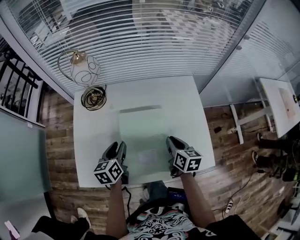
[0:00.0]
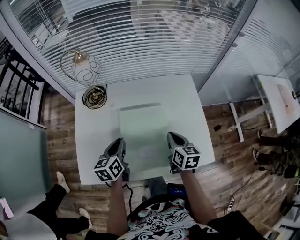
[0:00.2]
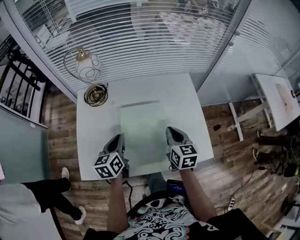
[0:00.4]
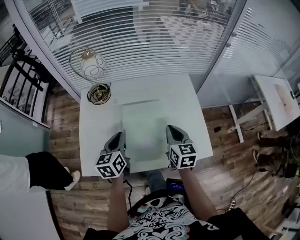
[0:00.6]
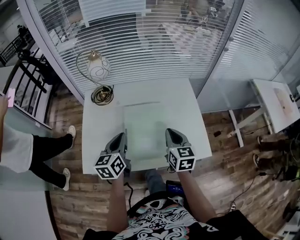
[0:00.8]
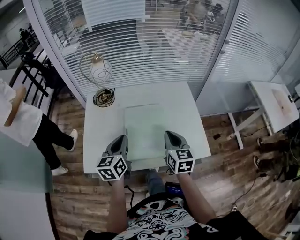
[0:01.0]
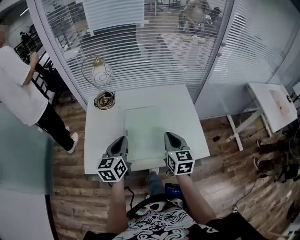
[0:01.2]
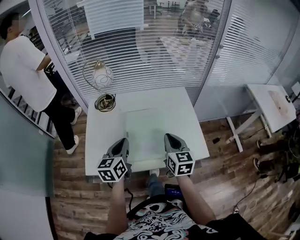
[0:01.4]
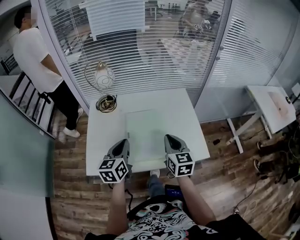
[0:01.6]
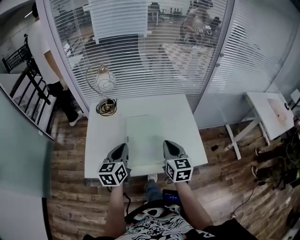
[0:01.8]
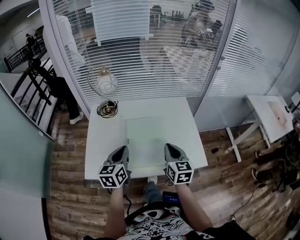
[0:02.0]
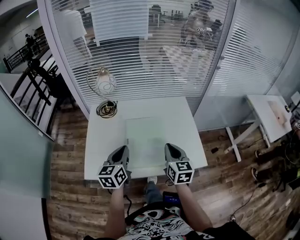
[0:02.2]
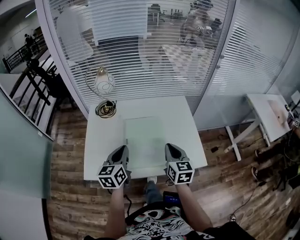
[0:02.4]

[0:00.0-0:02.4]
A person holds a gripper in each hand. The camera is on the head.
0:00.0 to 0:01.2: The two grippers go some 15 cm upward and backward. The left gripper closes up. Meanwhile the right gripper changes its angle by some 30 degrees.
0:01.2 to 0:02.4: The grippers stay close to where they were, moving slightly.

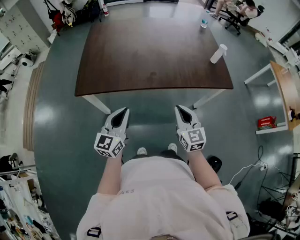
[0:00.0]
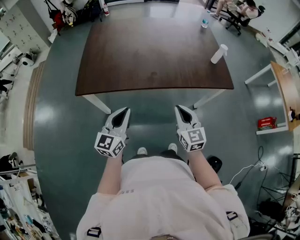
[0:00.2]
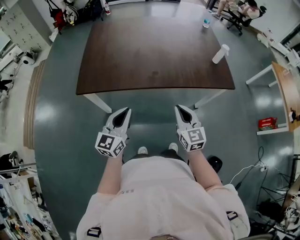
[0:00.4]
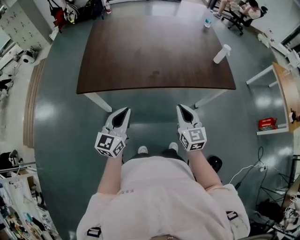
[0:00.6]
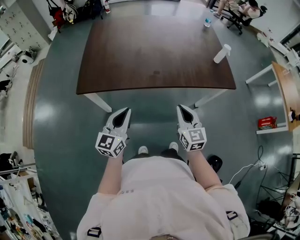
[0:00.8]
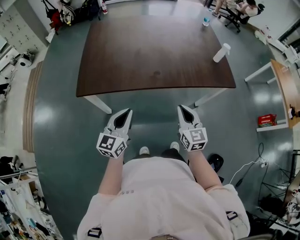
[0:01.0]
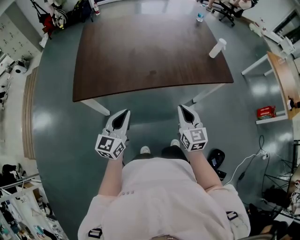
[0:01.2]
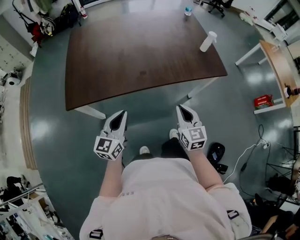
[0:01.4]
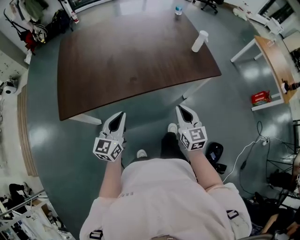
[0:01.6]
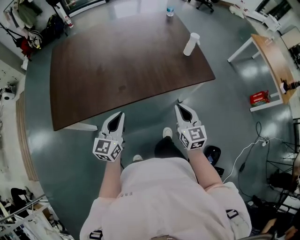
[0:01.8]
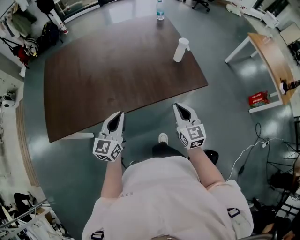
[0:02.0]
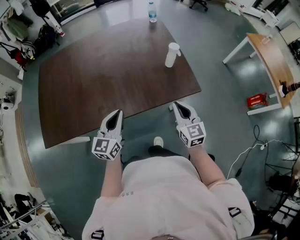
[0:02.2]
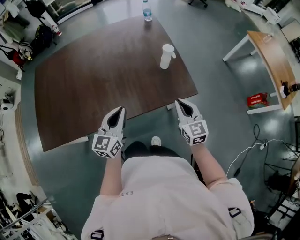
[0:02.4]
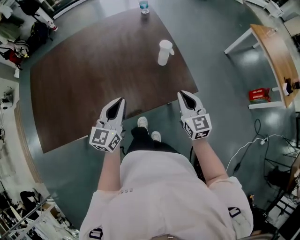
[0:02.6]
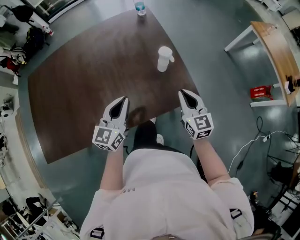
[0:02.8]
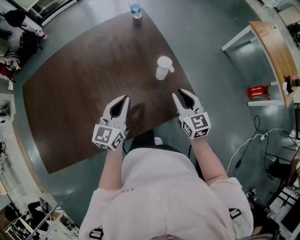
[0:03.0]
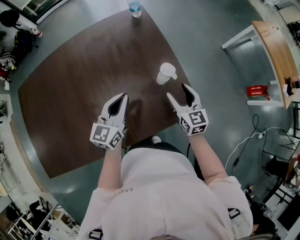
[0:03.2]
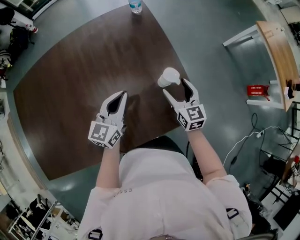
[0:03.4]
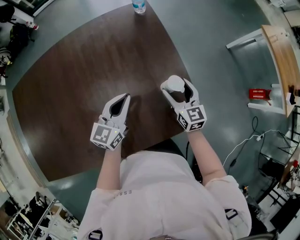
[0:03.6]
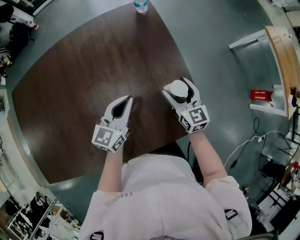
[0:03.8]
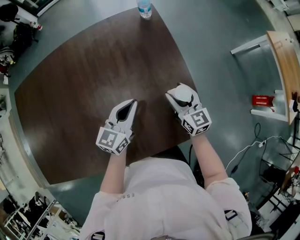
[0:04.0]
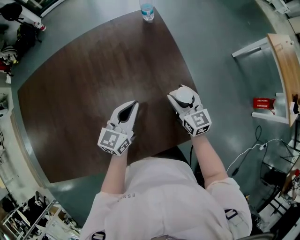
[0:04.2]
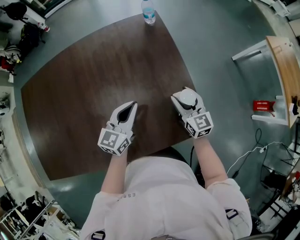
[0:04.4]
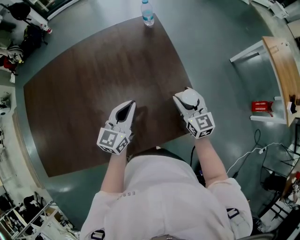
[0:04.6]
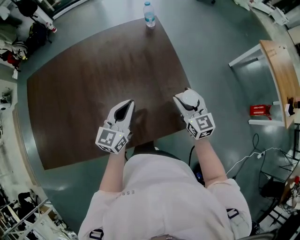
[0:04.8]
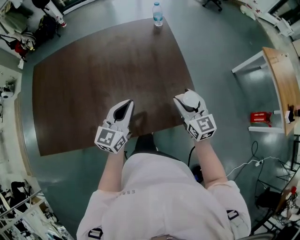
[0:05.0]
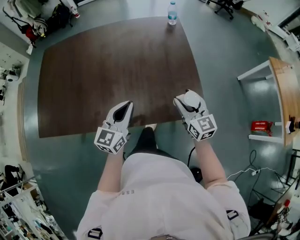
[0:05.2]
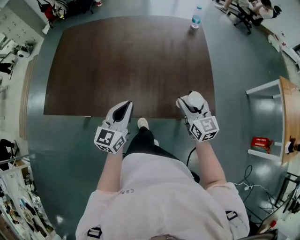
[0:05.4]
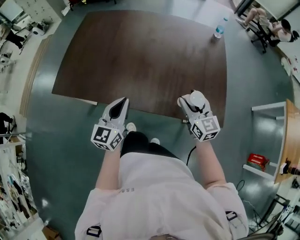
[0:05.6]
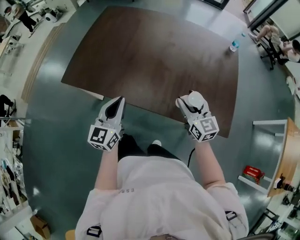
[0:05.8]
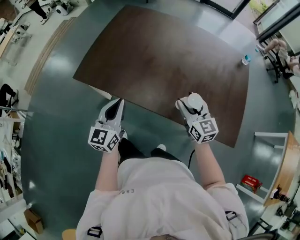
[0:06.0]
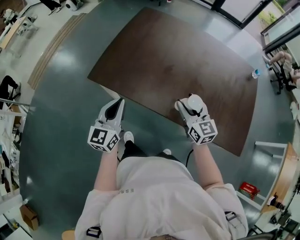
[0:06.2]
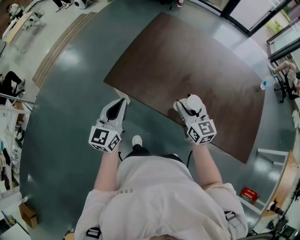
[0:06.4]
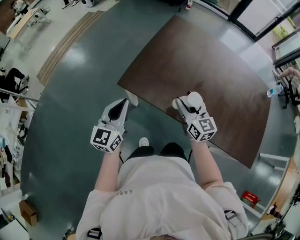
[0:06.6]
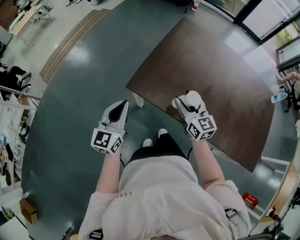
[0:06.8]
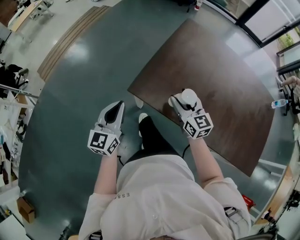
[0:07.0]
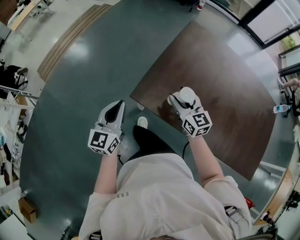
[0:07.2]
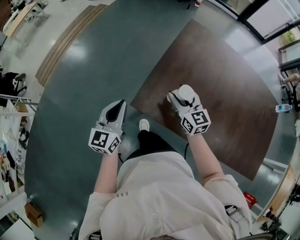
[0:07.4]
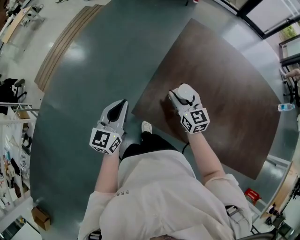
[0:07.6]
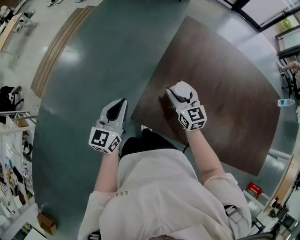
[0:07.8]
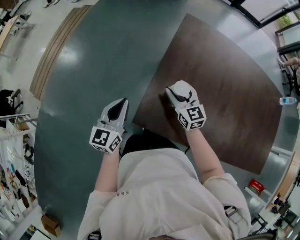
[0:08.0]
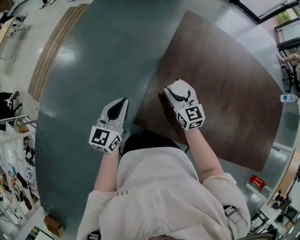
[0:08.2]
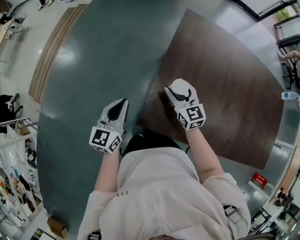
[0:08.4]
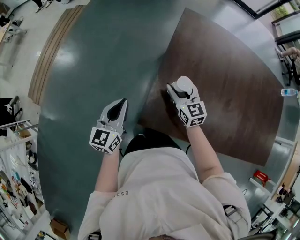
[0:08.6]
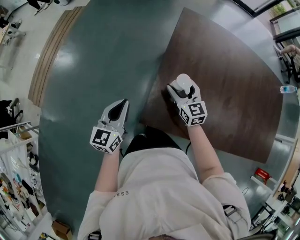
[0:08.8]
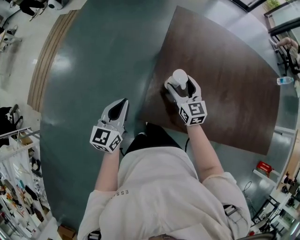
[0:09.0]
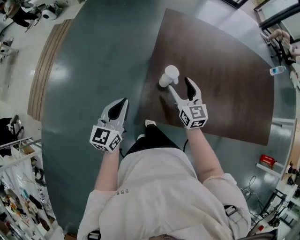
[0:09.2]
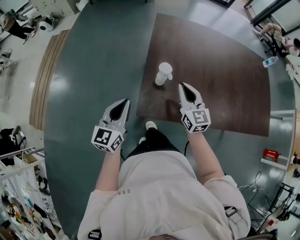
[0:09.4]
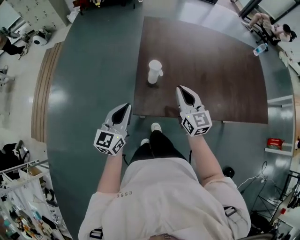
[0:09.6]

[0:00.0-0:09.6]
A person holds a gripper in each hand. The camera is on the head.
0:00.0 to 0:01.6: The left gripper travels forward and to the right by approximately 15 cm. Meanwhile the right gripper heads to the right and forward, covering roughly 10 cm.
0:01.6 to 0:03.2: Both grippers are carried forward and to the right, approximately 70 cm. The right gripper opens.
0:03.2 to 0:04.8: The left gripper reaches approximately 10 cm forward, then returns; the right gripper goes forward and returns, some 15 cm each way.
0:04.8 to 0:06.4: Both grippers are carried about 80 cm. The left gripper changes its angle by roughly 50 degrees; the right gripper rotates about 40 degrees.
0:06.4 to 0:08.0: Both grippers are carried forward and to the left, roughly 40 cm.
0:08.0 to 0:09.6: The left gripper goes some 15 cm backward and upward, and swivels approximately 20 degrees. Meanwhile the right gripper travels backward and upward by roughly 25 cm, swivels roughly 30 degrees, and closes up.

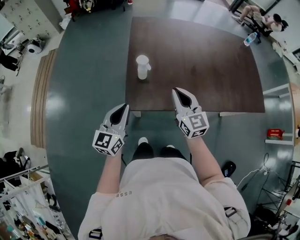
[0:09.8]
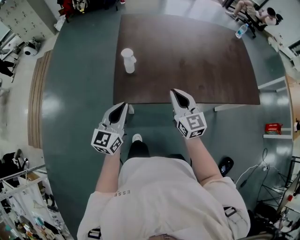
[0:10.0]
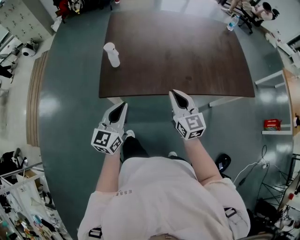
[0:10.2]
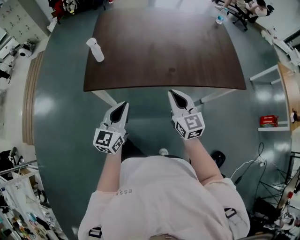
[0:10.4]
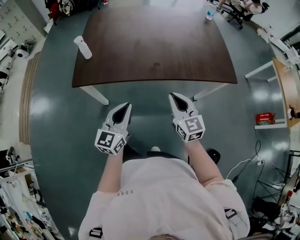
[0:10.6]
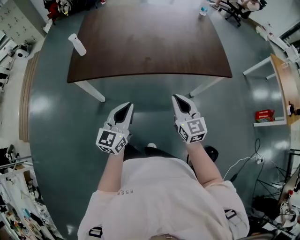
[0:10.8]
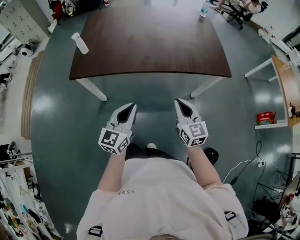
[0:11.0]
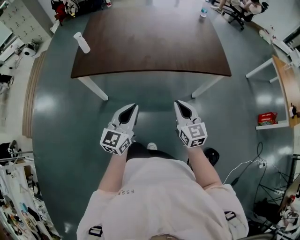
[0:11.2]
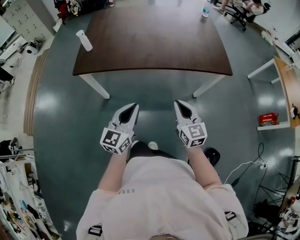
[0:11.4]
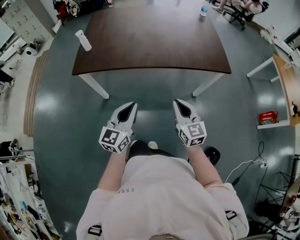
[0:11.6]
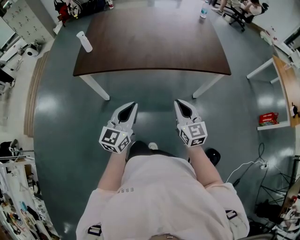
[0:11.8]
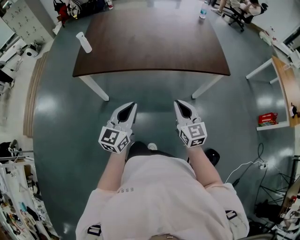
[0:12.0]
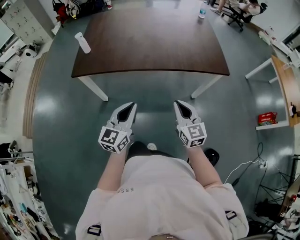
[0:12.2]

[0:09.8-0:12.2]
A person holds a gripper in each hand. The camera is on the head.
0:09.8 to 0:11.0: Both grippers are carried to the right and backward, approximately 60 cm.
0:11.0 to 0:12.2: The right gripper moves roughly 5 cm.

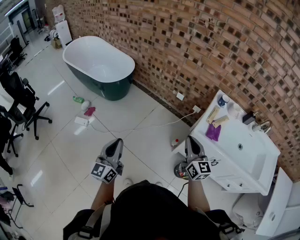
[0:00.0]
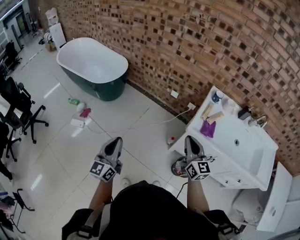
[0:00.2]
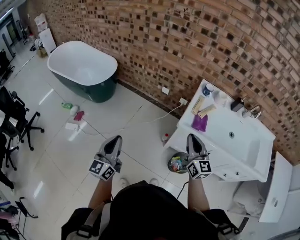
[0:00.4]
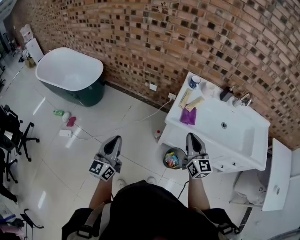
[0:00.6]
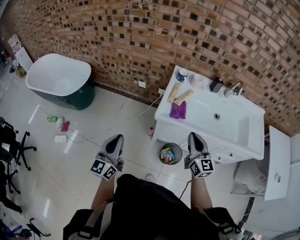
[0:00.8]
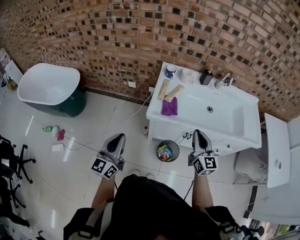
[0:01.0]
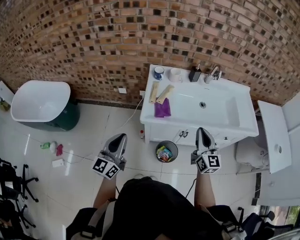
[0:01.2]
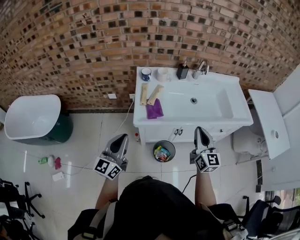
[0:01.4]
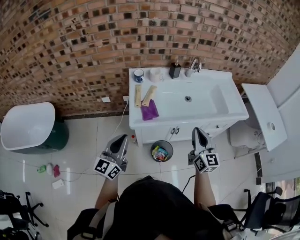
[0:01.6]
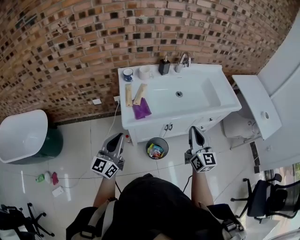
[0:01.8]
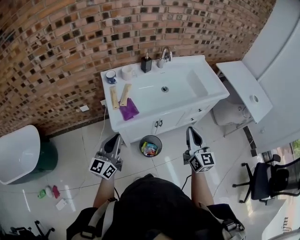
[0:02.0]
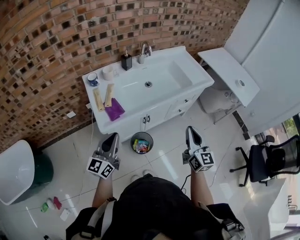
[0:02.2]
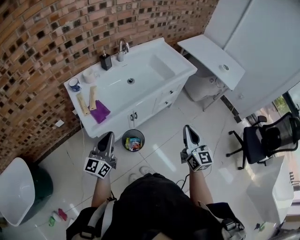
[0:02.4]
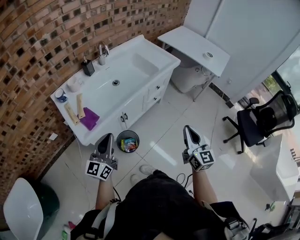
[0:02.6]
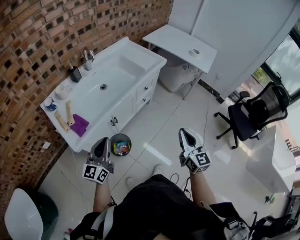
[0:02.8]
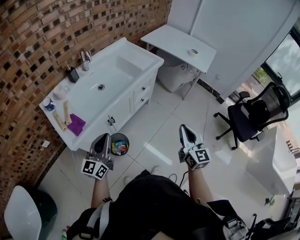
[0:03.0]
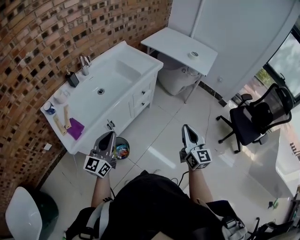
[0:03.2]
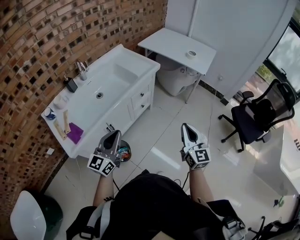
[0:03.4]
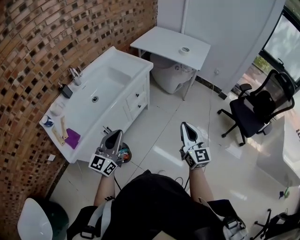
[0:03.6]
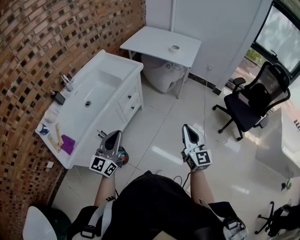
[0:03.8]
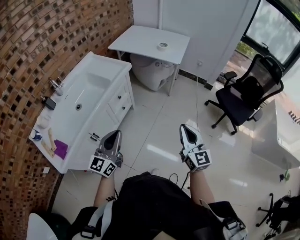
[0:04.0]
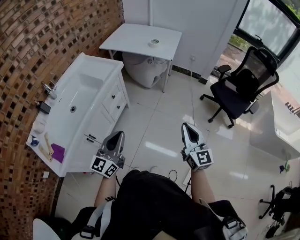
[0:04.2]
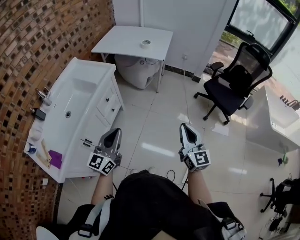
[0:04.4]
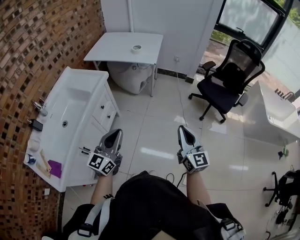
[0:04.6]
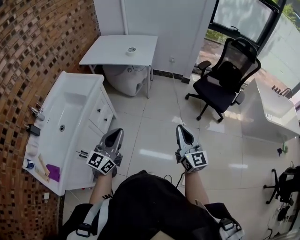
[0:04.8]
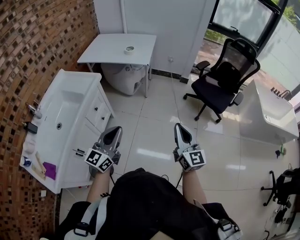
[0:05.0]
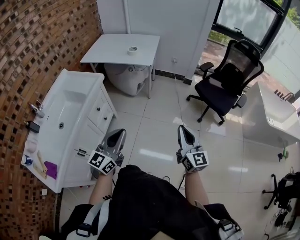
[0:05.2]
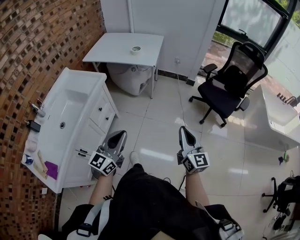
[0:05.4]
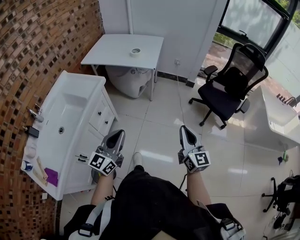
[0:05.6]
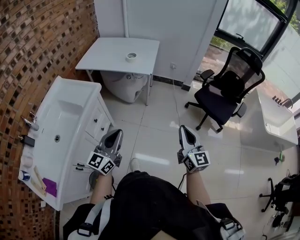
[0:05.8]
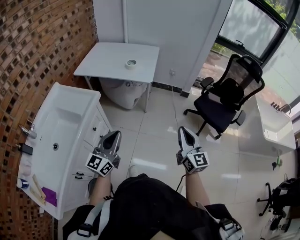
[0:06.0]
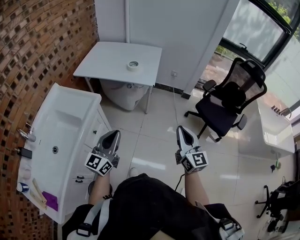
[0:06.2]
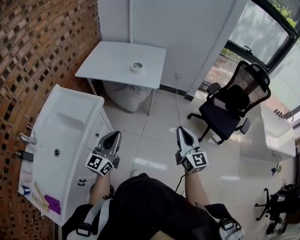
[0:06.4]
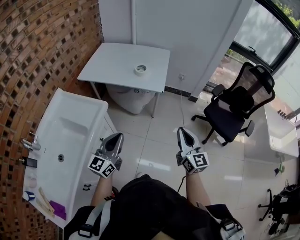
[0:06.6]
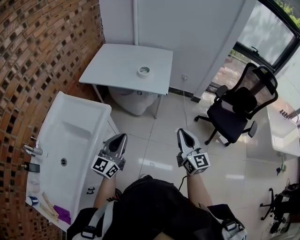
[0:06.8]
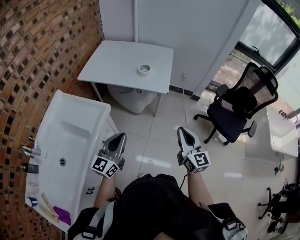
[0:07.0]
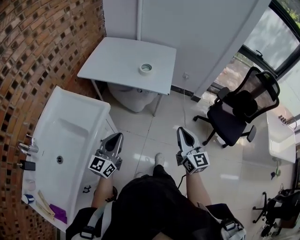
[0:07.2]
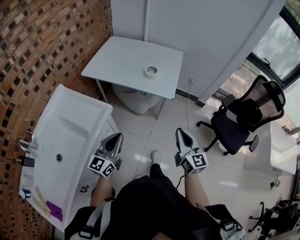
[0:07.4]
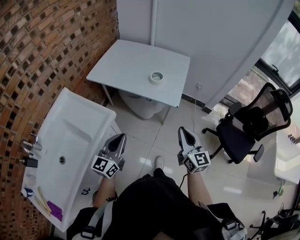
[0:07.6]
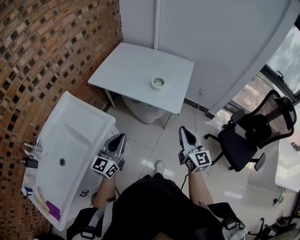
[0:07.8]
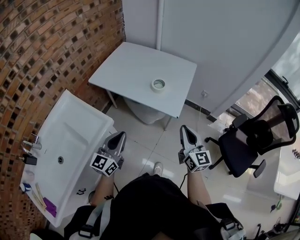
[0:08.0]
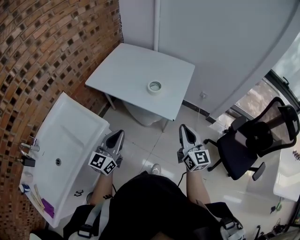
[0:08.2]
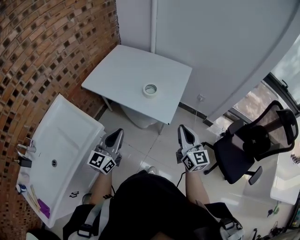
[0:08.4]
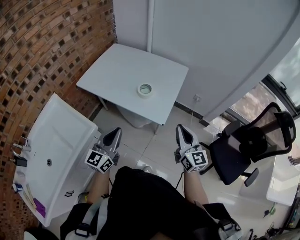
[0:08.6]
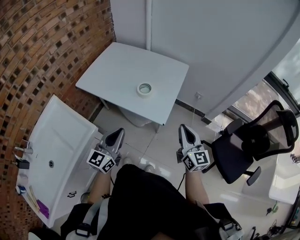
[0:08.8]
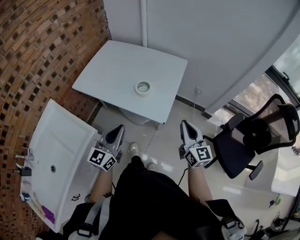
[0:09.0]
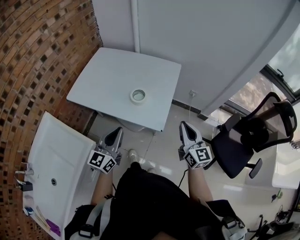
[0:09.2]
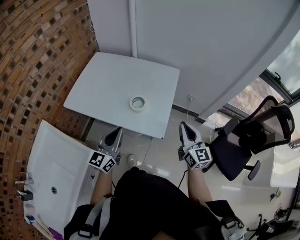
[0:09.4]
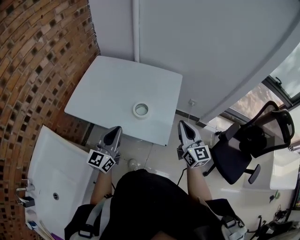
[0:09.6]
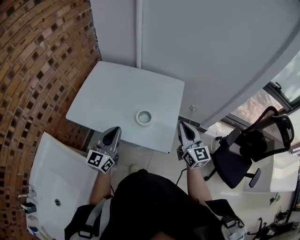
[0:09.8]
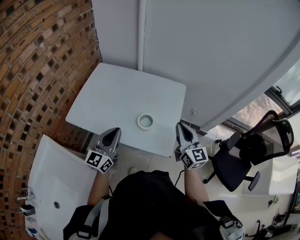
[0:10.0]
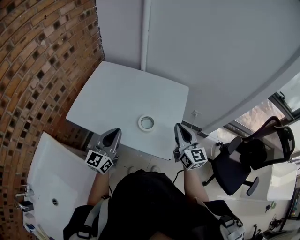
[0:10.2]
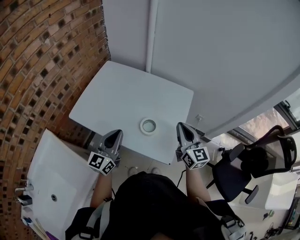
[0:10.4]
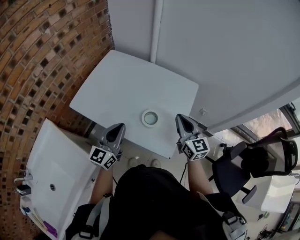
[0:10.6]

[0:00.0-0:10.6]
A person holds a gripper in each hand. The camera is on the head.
0:00.0 to 0:01.6: The right gripper changes place by roughly 35 cm, and rotates about 40 degrees; the left gripper shifts by about 35 cm, and swivels roughly 50 degrees.
0:01.6 to 0:03.0: The right gripper moves about 30 cm, and turns by approximately 40 degrees; the left gripper shifts by approximately 25 cm, and turns by about 40 degrees.
0:03.0 to 0:04.6: The left gripper ends up about 35 cm from where it was, and turns by roughly 30 degrees, while the right gripper ends up approximately 25 cm from where it was, and swivels some 20 degrees.
0:04.6 to 0:06.0: Both grippers travel together forward, about 20 cm.
0:06.0 to 0:07.6: Both grippers move forward and to the left, approximately 25 cm.
0:07.6 to 0:09.0: Both grippers travel together forward and to the right, some 20 cm.
0:09.0 to 0:10.6: The left gripper heads forward, covering roughly 20 cm; the right gripper travels forward and to the left by roughly 25 cm.
